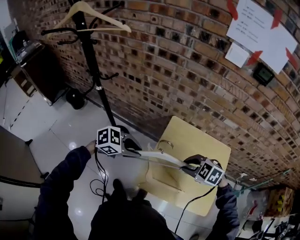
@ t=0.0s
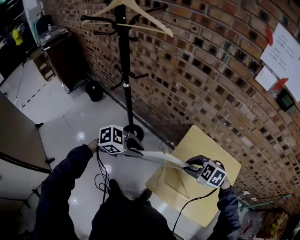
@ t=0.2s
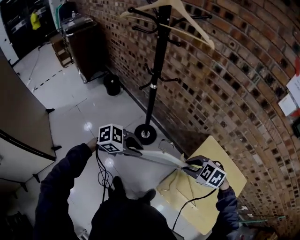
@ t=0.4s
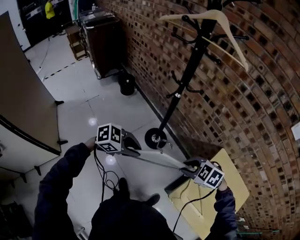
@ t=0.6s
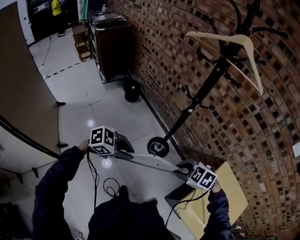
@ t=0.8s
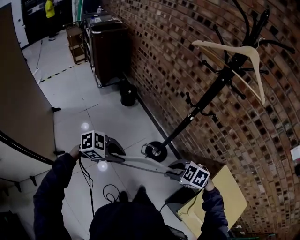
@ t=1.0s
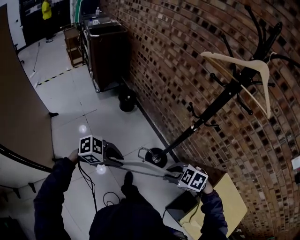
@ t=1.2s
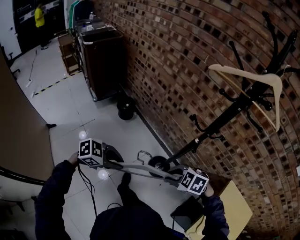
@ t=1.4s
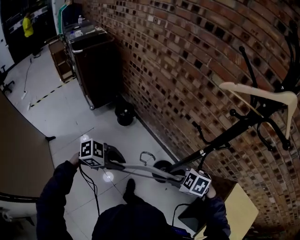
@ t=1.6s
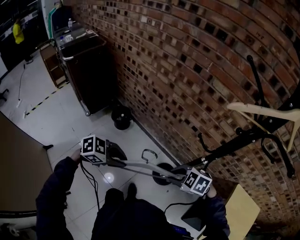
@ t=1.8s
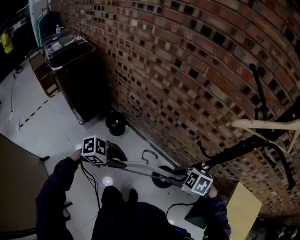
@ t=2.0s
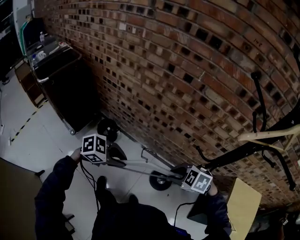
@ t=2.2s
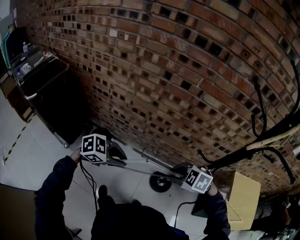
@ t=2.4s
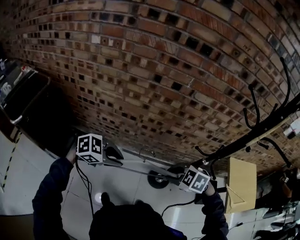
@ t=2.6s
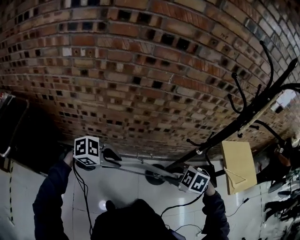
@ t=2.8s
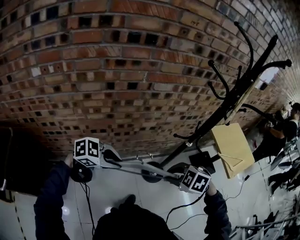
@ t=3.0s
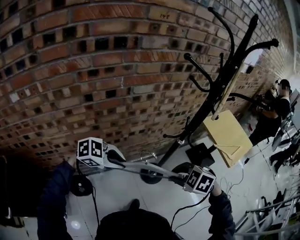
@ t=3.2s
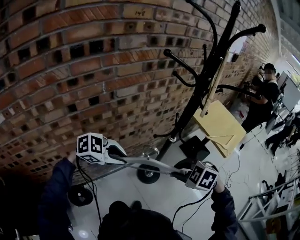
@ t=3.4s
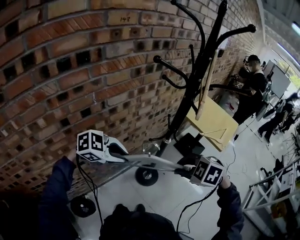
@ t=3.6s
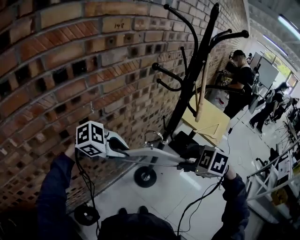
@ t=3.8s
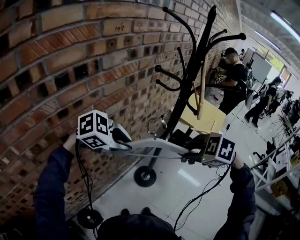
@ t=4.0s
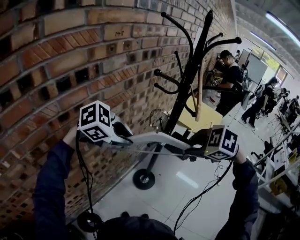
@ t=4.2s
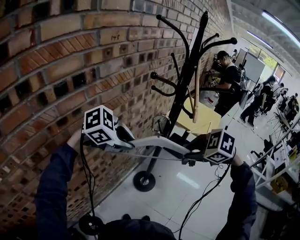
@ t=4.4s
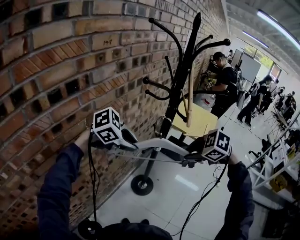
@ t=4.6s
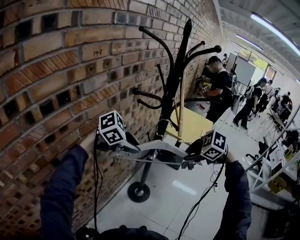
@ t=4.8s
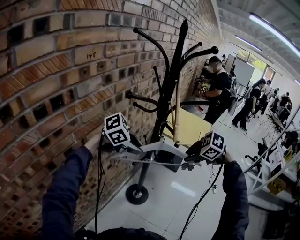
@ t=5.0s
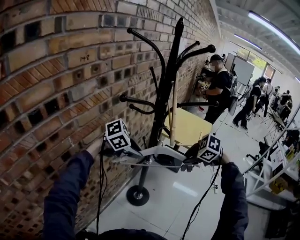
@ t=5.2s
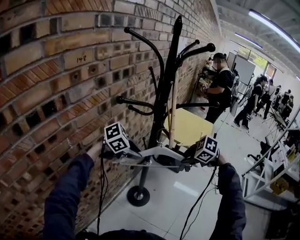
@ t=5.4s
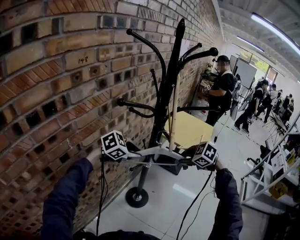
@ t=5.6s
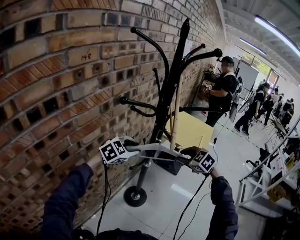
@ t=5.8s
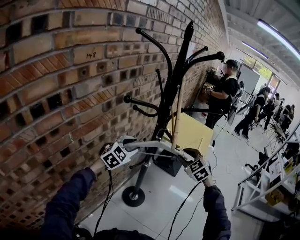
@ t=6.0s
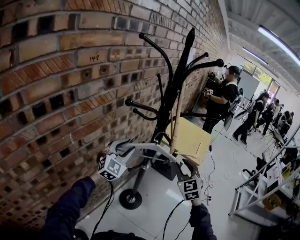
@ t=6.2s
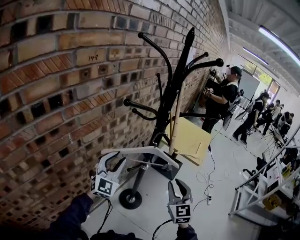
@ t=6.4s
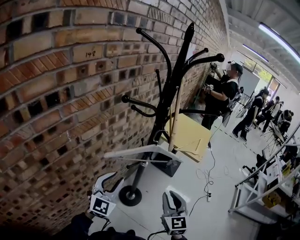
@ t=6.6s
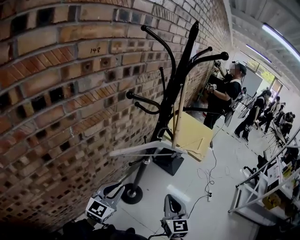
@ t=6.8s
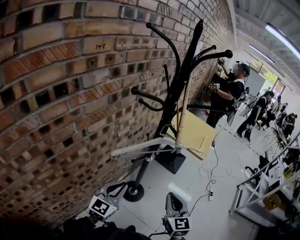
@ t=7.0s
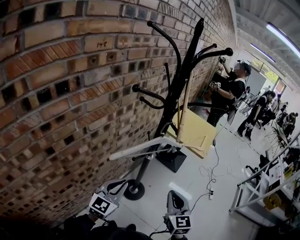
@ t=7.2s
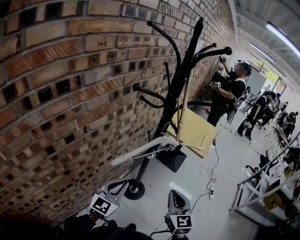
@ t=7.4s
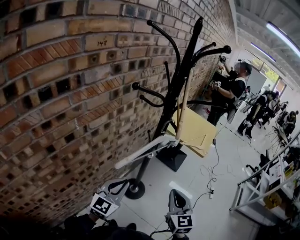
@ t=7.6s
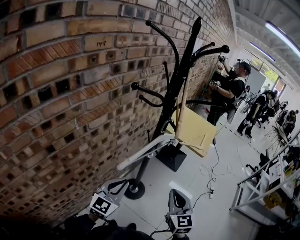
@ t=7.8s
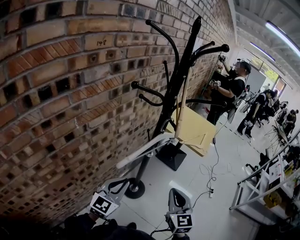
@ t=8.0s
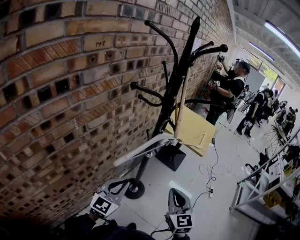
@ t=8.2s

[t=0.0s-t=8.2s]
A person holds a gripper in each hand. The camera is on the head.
t=0.0s to t=1.6s: Both grippers are carried some 70 cm. The right gripper turns by roughly 20 degrees, while the left gripper turns by roughly 20 degrees.
t=1.6s to t=3.2s: The left gripper shifts by approximately 35 cm, and rotates approximately 70 degrees, while the right gripper shifts by about 20 cm, and twists about 60 degrees clockwise, seen from behind.
t=3.2s to t=5.0s: The right gripper changes place by approximately 20 cm, and swivels some 40 degrees; the left gripper moves some 30 cm, and turns by approximately 30 degrees.
t=5.0s to t=6.6s: The left gripper ends up roughly 10 cm from where it was, and points its fingers some 40 degrees further upward, while the right gripper swings up and down, about 5 cm each way, with 2 reversals, and tips its fingers upward by about 50 degrees.
t=6.6s to t=8.2s: The left gripper goes approximately 5 cm backward, and closes its fingers. The right gripper closes its fingers.

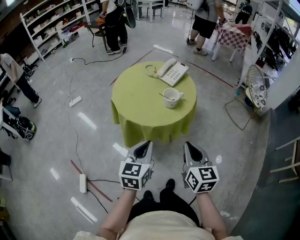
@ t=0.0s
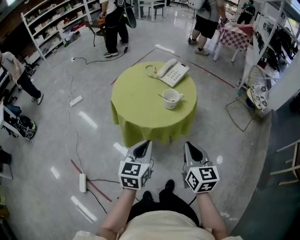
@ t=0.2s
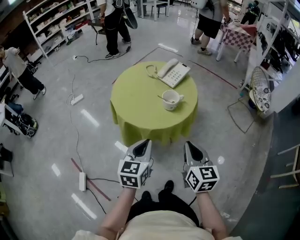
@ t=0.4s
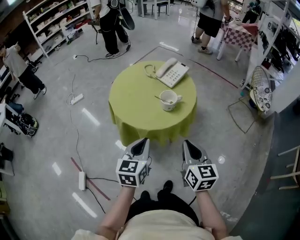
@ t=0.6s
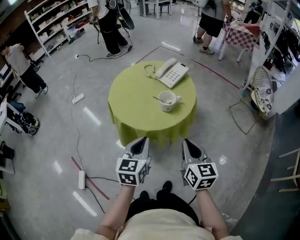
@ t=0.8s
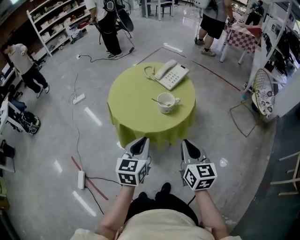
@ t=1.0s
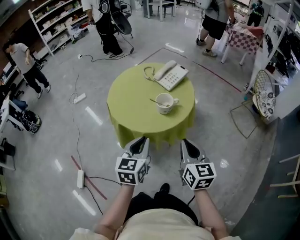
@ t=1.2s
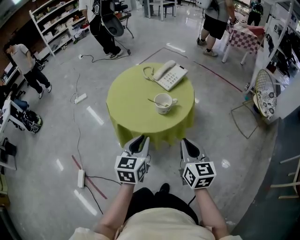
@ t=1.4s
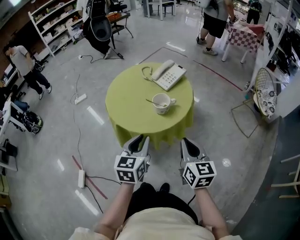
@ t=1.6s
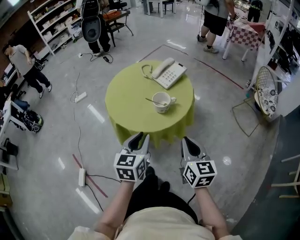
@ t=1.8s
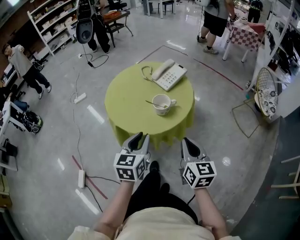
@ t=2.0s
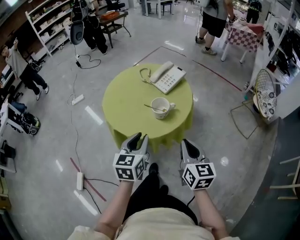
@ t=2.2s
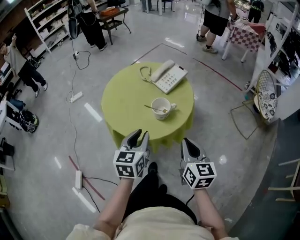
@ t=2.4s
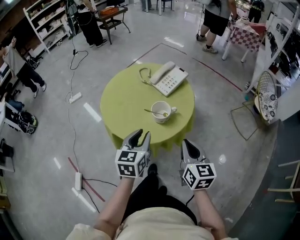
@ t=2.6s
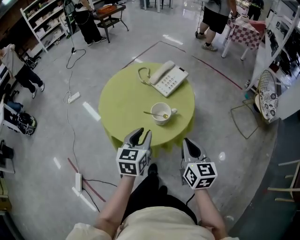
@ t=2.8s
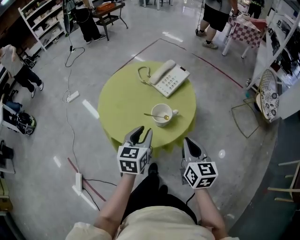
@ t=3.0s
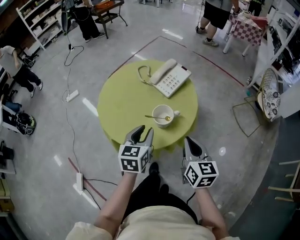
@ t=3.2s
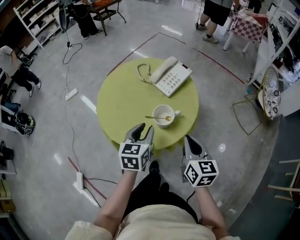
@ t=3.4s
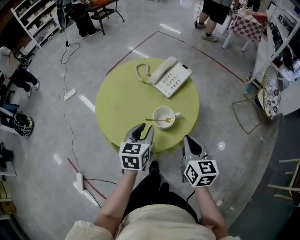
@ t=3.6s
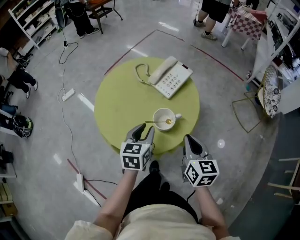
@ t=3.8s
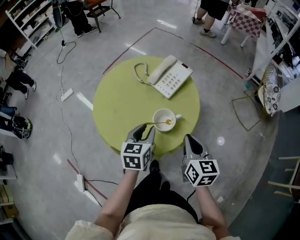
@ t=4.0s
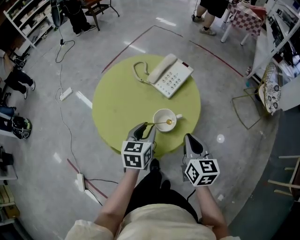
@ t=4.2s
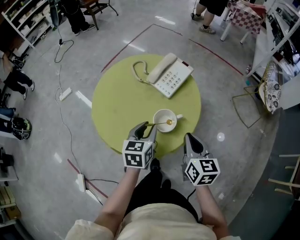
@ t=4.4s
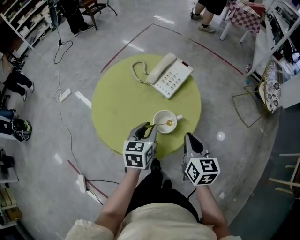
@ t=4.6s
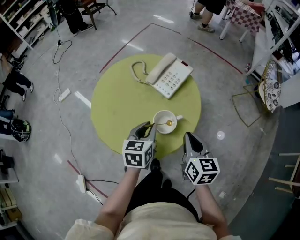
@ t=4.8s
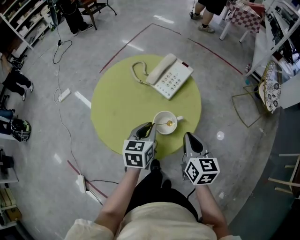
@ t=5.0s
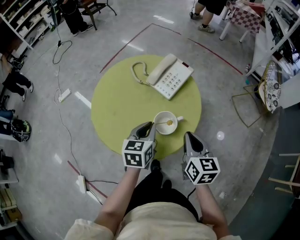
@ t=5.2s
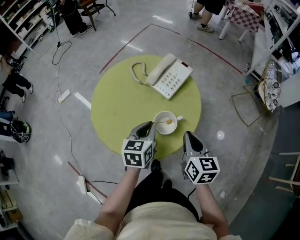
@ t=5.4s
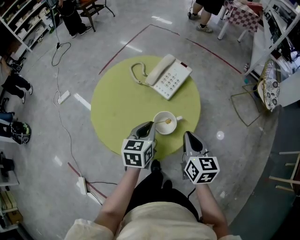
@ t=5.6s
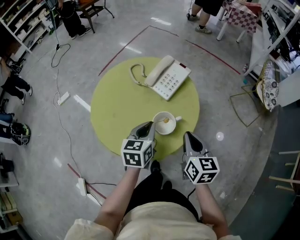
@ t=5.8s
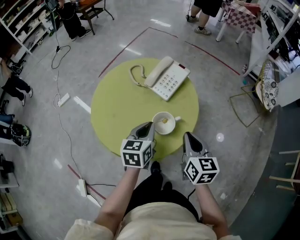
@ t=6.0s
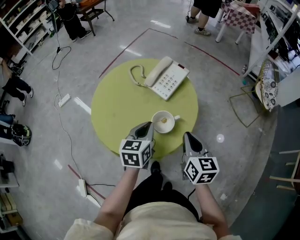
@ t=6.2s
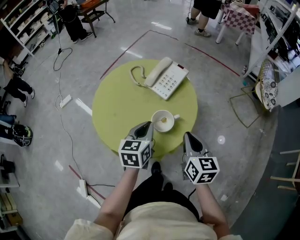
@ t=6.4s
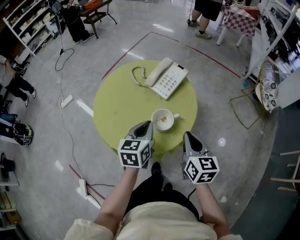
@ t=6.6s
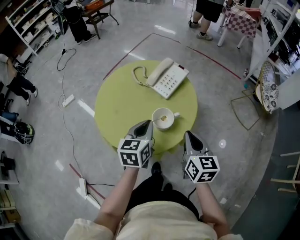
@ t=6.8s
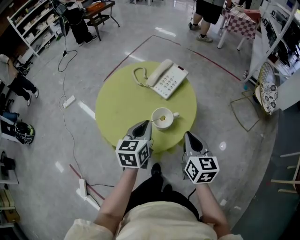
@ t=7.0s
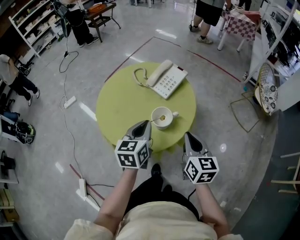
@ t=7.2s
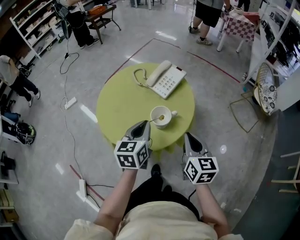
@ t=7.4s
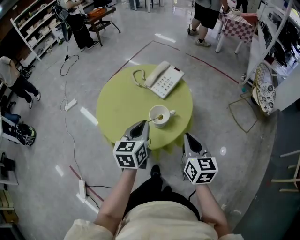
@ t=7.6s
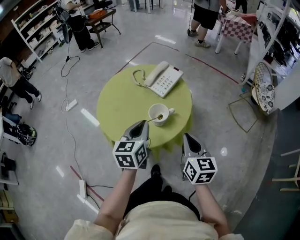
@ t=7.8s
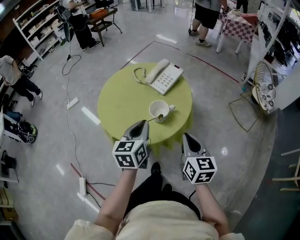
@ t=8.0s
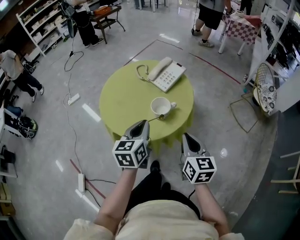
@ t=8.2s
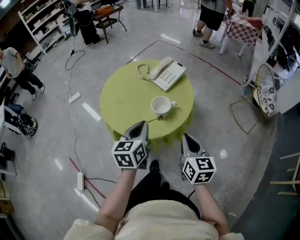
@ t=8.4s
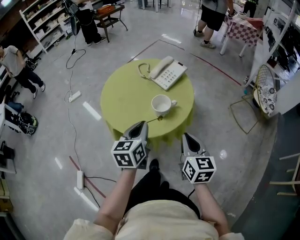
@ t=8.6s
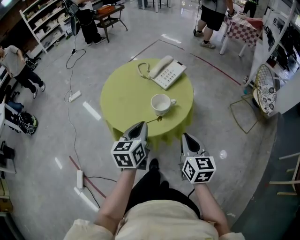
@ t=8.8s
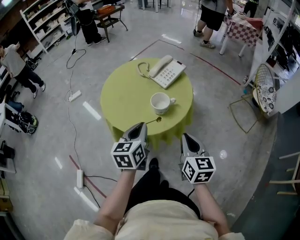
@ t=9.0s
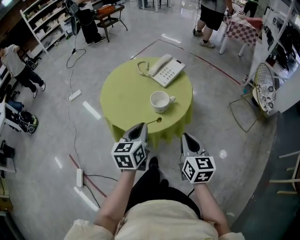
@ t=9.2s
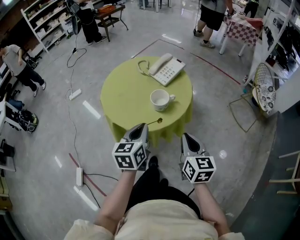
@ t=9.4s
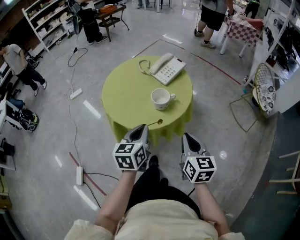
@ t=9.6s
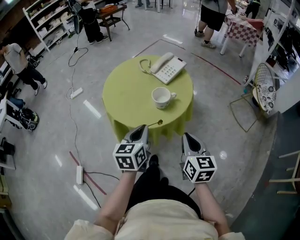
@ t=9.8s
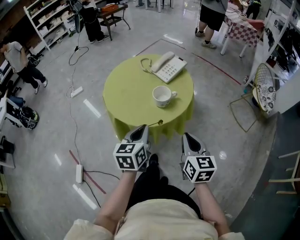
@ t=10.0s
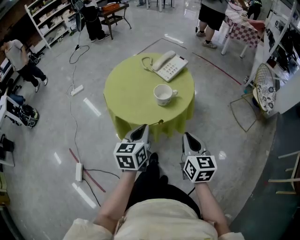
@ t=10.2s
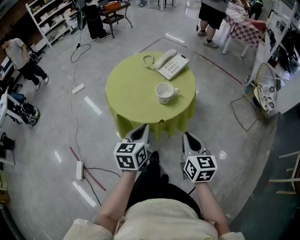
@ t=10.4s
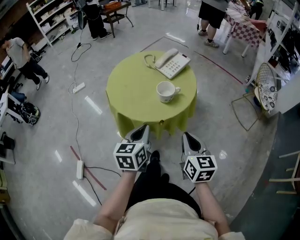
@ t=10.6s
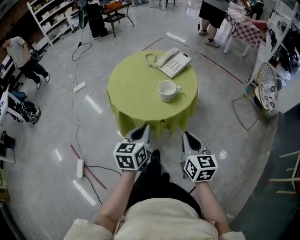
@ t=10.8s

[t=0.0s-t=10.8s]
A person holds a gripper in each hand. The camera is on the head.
t=0.0s to t=1.6s: The right gripper heads to the right and forward, covering about 10 cm. The left gripper moves forward and to the right, about 10 cm.
t=1.6s to t=3.0s: The two grippers go roughly 10 cm forward.
t=3.0s to t=4.6s: The left gripper travels forward and downward by roughly 10 cm. The right gripper is displaced forward by some 5 cm.
t=4.6s to t=6.2s: The left gripper closes.
t=6.2s to t=7.8s: The left gripper travels backward and upward by approximately 10 cm, while the right gripper heads backward, covering roughly 5 cm.
t=7.8s to t=9.2s: Both grippers move backward, approximately 5 cm.
t=9.2s to t=10.8s: Both grippers travel together backward, approximately 5 cm.

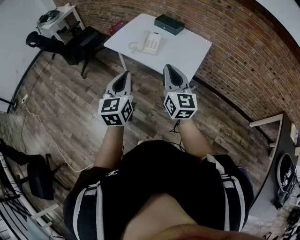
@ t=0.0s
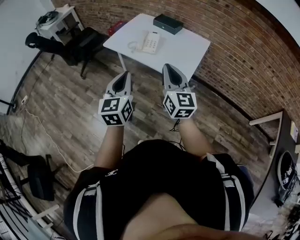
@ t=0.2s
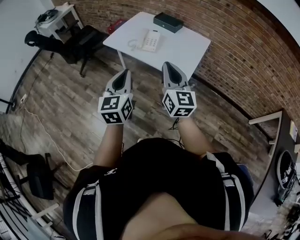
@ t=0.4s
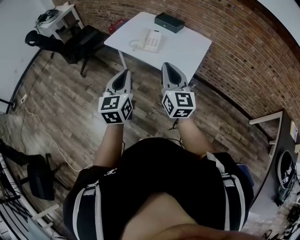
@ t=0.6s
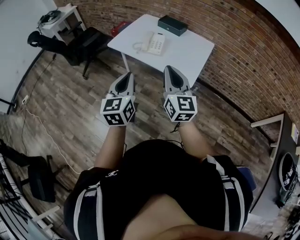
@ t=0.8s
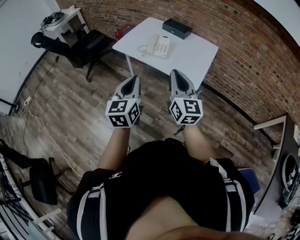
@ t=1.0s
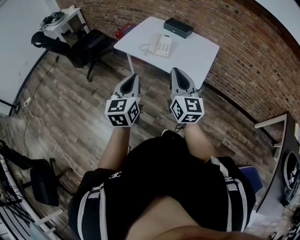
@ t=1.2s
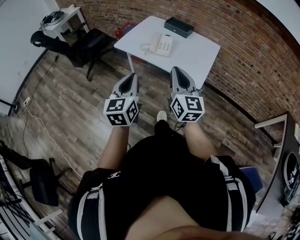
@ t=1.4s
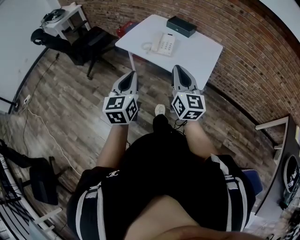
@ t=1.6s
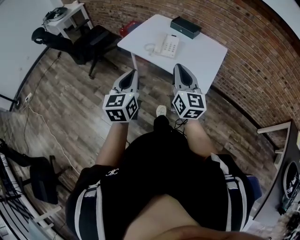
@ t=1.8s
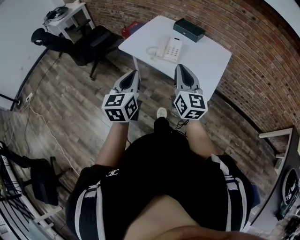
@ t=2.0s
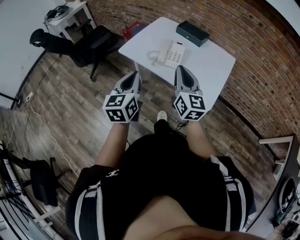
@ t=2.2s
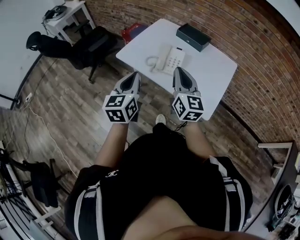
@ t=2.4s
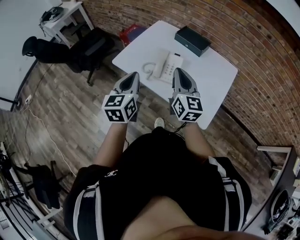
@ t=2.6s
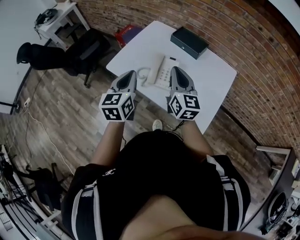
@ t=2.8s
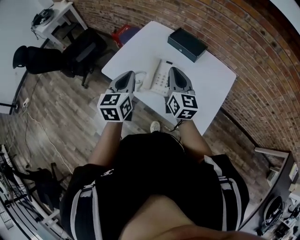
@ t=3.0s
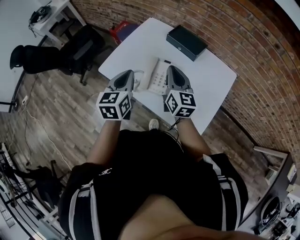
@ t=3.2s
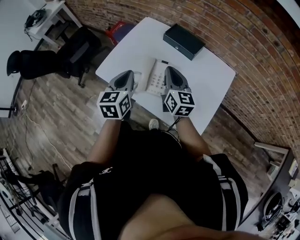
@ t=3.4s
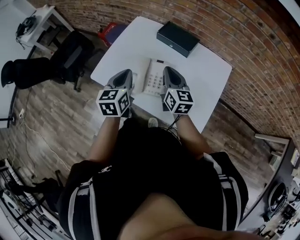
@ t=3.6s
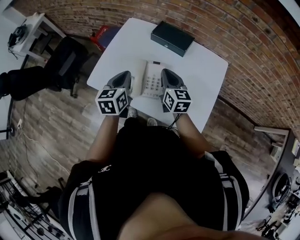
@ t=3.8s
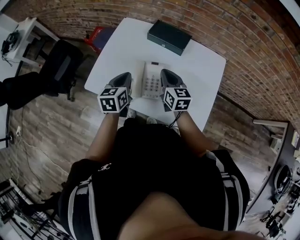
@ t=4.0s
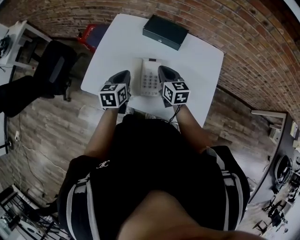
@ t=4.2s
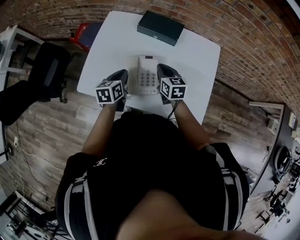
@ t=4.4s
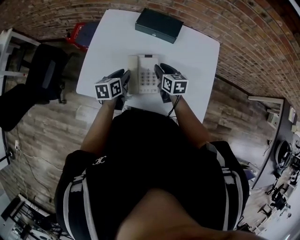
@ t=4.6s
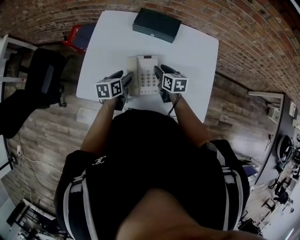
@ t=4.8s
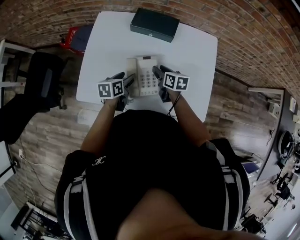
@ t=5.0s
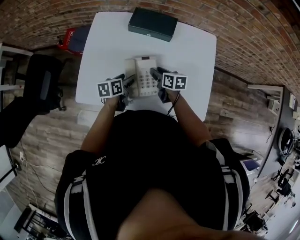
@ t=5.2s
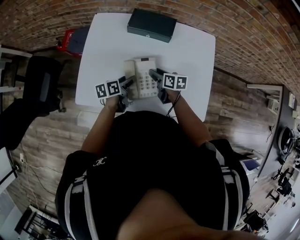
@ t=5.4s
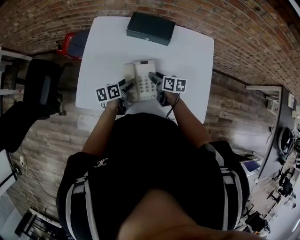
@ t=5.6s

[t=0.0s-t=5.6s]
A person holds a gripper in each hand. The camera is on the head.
t=0.0s to t=1.4s: The two grippers go some 10 cm to the left.
t=1.4s to t=2.8s: Both grippers travel together forward, about 40 cm.
t=2.8s to t=4.2s: The left gripper heads forward and downward, covering some 25 cm, and changes its angle by roughly 30 degrees, while the right gripper moves downward and forward, roughly 20 cm, and rotates approximately 20 degrees.
t=4.2s to t=5.6s: Both grippers move downward, about 15 cm. The right gripper rotates about 30 degrees, and opens. Meanwhile the left gripper swivels roughly 40 degrees, and opens up.
